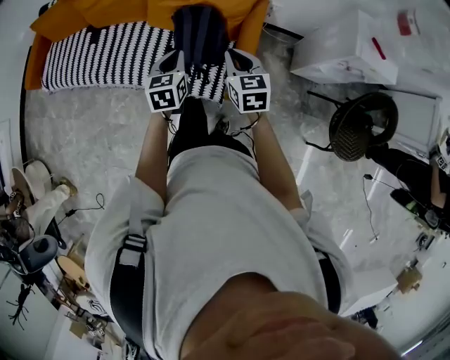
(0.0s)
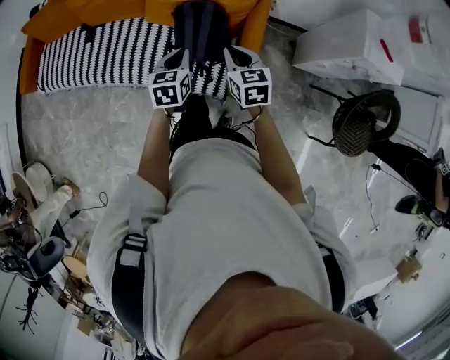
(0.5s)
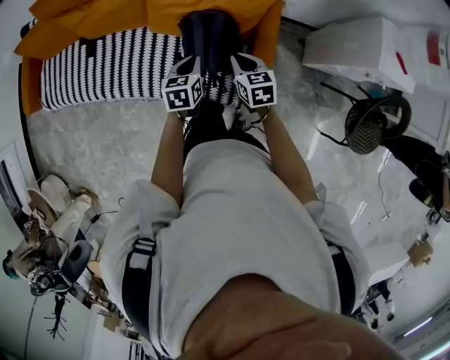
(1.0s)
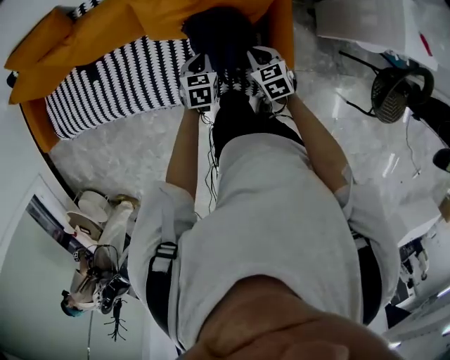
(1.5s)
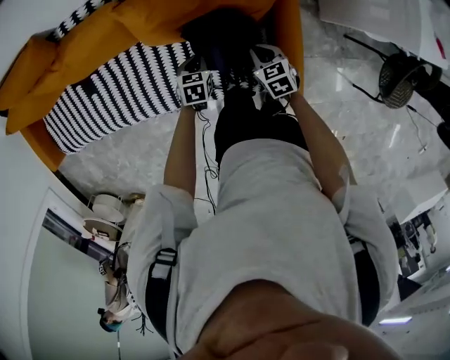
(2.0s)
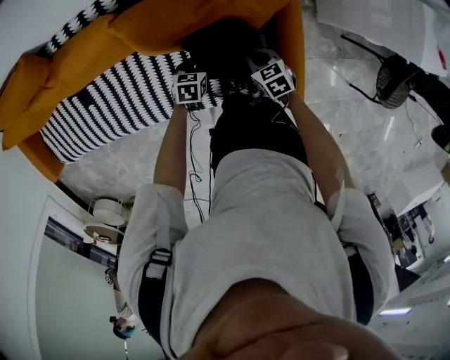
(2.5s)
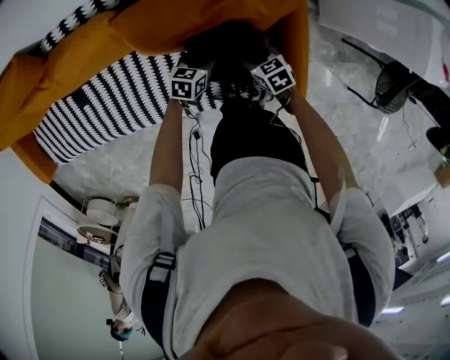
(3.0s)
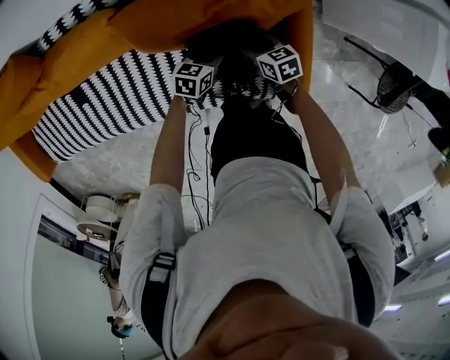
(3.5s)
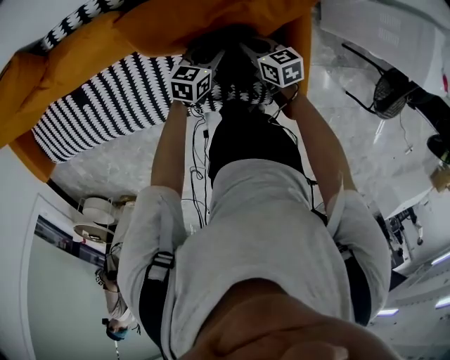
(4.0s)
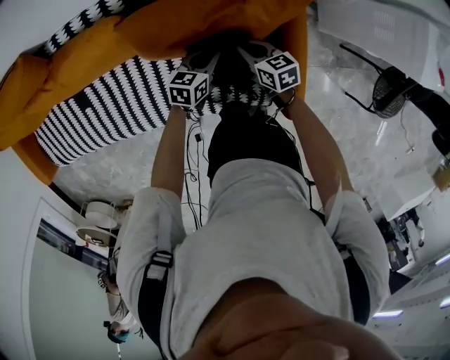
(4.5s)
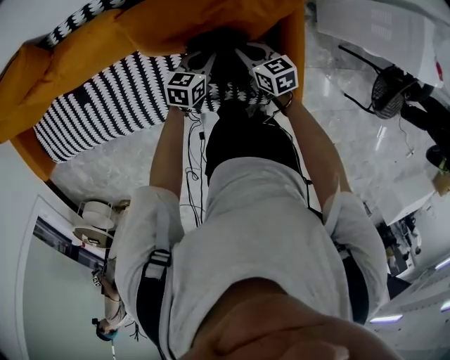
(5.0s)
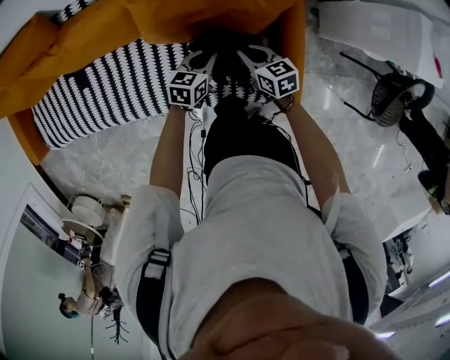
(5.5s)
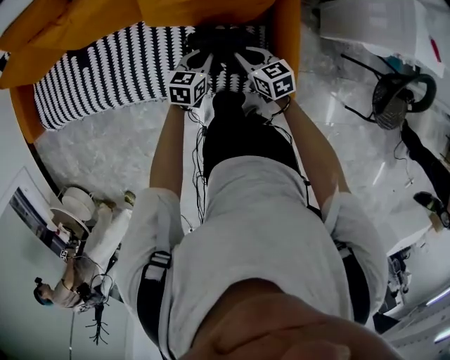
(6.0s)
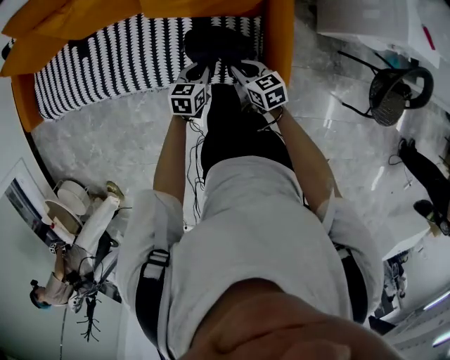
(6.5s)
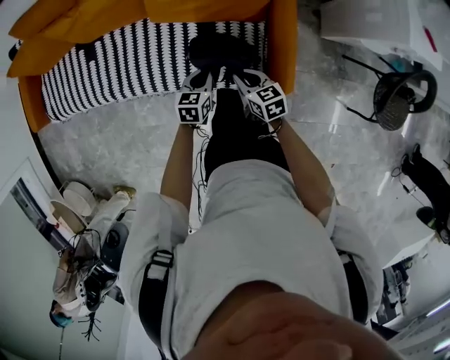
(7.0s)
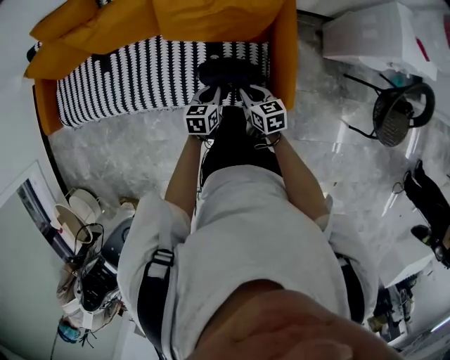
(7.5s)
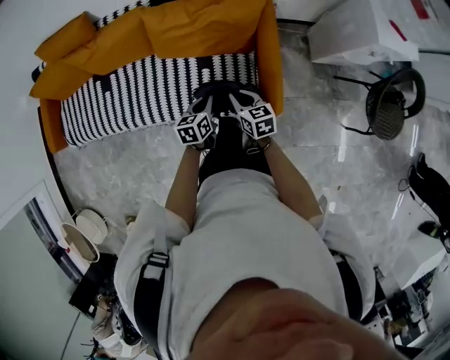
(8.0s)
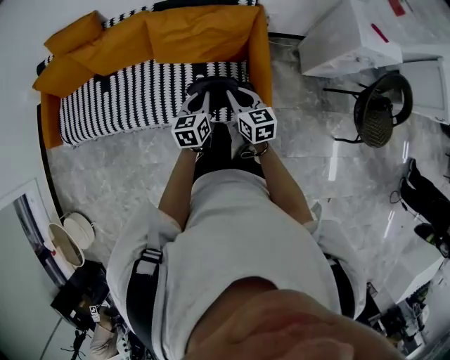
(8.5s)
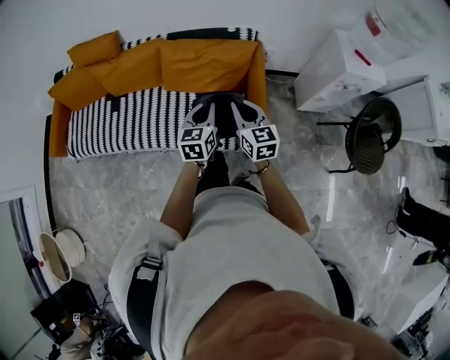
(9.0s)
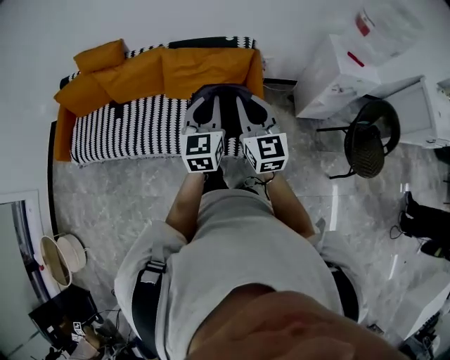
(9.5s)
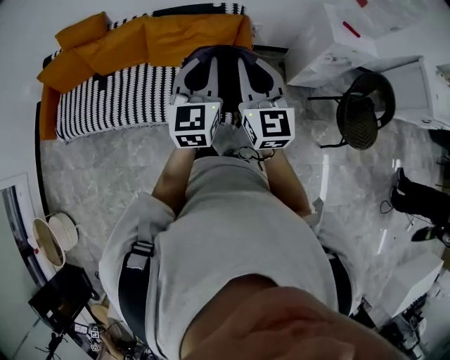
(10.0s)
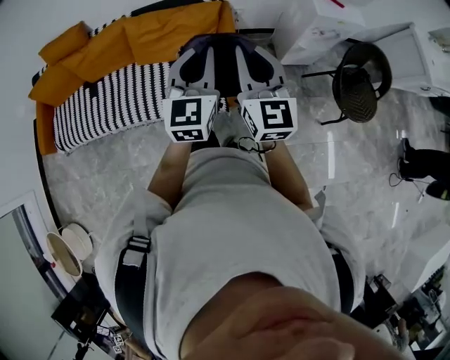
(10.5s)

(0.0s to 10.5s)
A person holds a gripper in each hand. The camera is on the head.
0.0s - 2.0s: The grippers both shift downward and forward by roughly 40 cm. The left gripper swivels approximately 30 degrees. Meanwhile the right gripper turns by some 30 degrees.
2.0s - 4.0s: The right gripper goes about 10 cm forward, rotates approximately 20 degrees, and opens, then closes again. The left gripper travels forward and to the right by approximately 10 cm, turns by about 30 degrees, and opens.
4.0s - 6.5s: The two grippers go some 30 cm backward. The left gripper closes its fingers.
6.5s - 8.5s: Both grippers move upward, some 20 cm. The right gripper rotates some 20 degrees.
8.5s - 10.5s: Both grippers travel together upward and to the right, about 30 cm. The left gripper turns by some 40 degrees, while the right gripper swivels approximately 40 degrees.

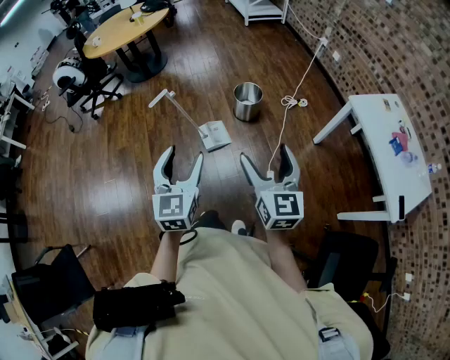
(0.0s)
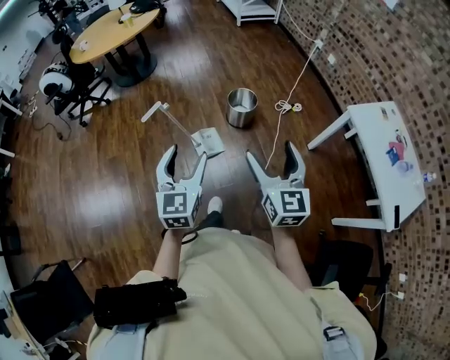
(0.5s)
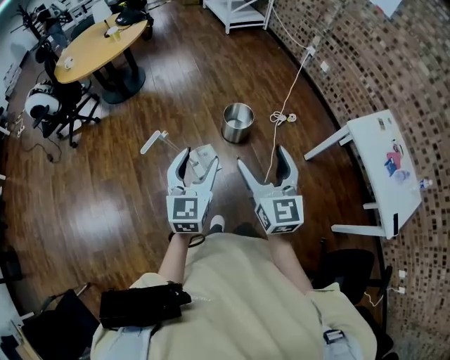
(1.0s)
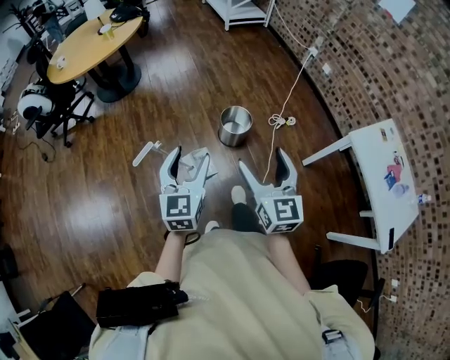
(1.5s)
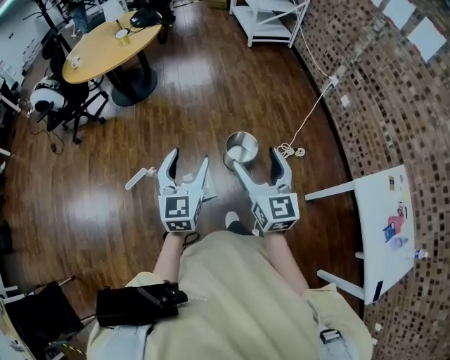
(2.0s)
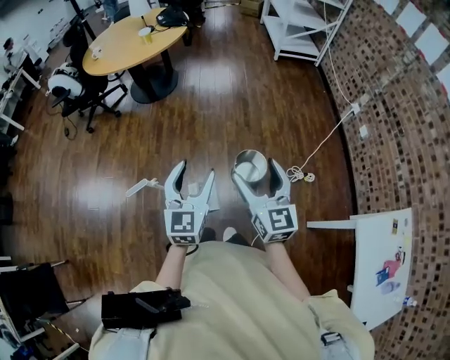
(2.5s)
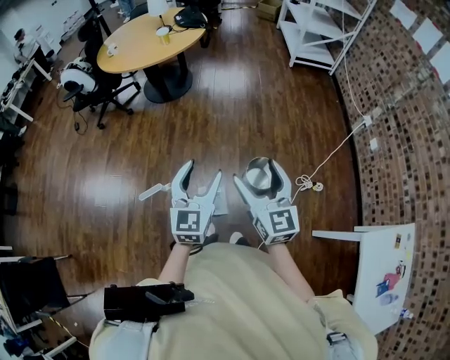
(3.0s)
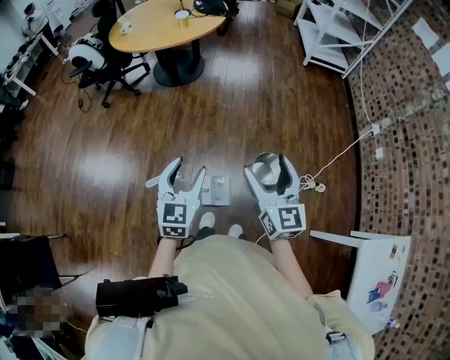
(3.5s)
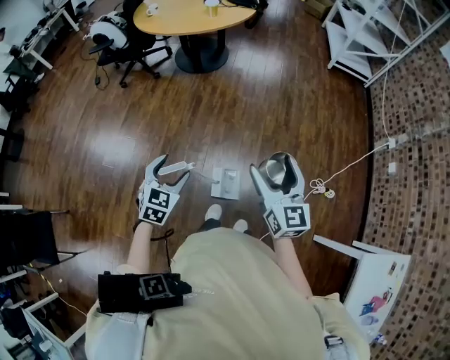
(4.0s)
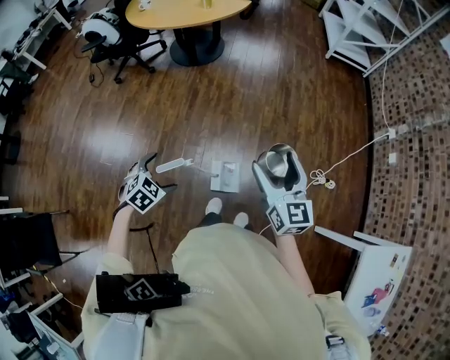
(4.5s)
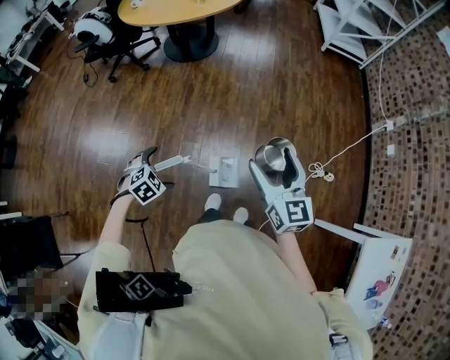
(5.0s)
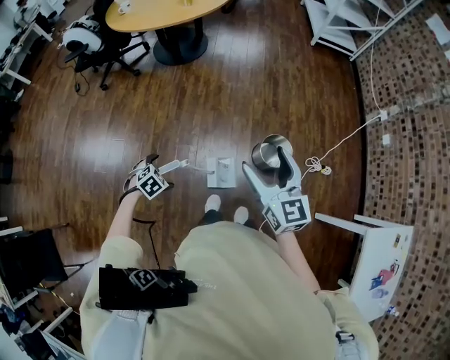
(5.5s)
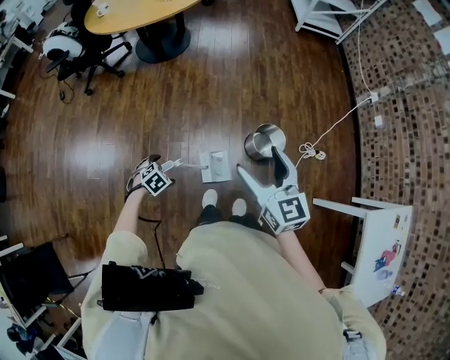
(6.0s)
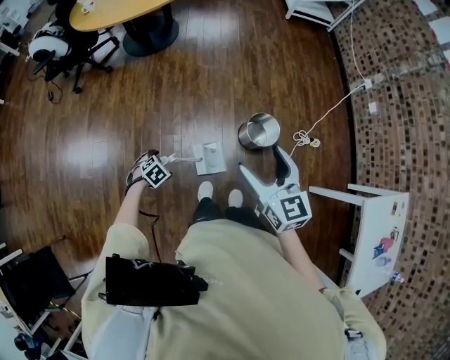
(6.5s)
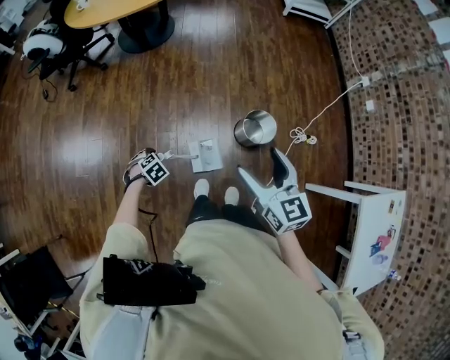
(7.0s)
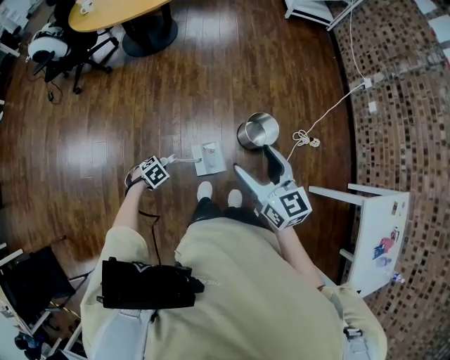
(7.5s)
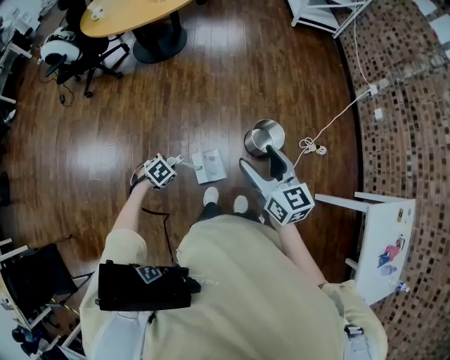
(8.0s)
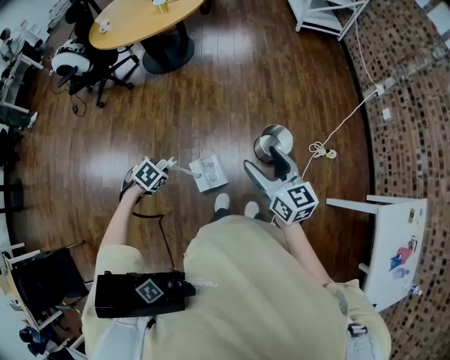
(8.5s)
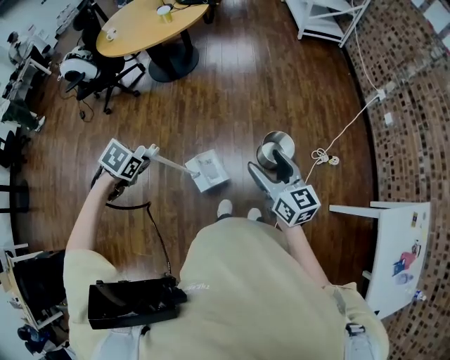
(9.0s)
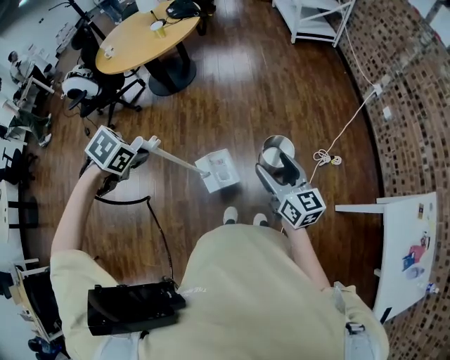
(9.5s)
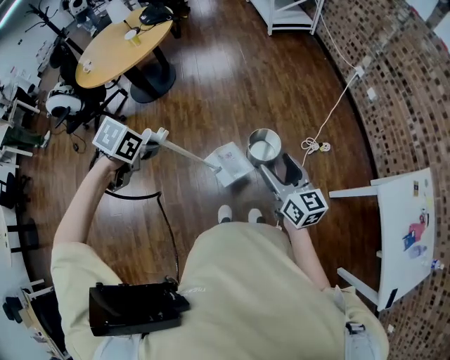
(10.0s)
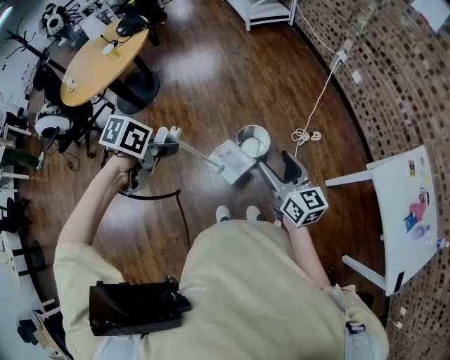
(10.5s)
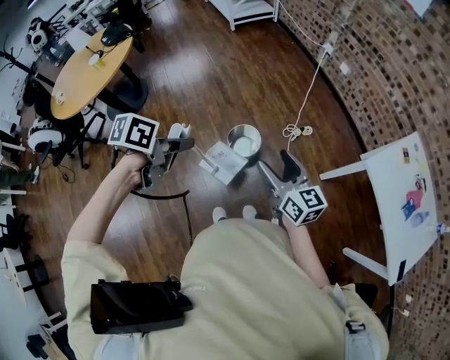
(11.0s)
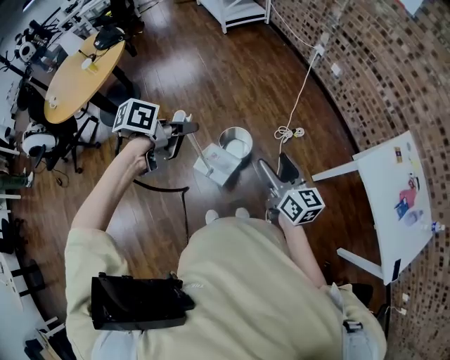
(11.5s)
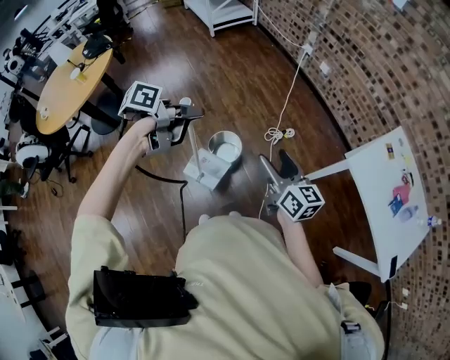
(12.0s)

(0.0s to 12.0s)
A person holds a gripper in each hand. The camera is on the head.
0.0s - 2.0s: Both grippers are carried forward, about 40 cm.
2.0s - 4.0s: The right gripper heads forward and to the left, covering roughly 20 cm, and rotates roughly 20 degrees, while the left gripper goes some 25 cm to the left and downward, and swivels approximately 30 degrees.
4.0s - 6.0s: The left gripper shifts roughly 25 cm downward, and points its fingers some 40 degrees further downward.
6.0s - 8.0s: The left gripper closes up.
8.0s - 10.0s: The right gripper shifts by roughly 15 cm, while the left gripper goes roughly 30 cm upward.
10.0s - 12.0s: The left gripper goes roughly 35 cm forward and to the right, and angles its fingers upward, by about 40 degrees. Meanwhile the right gripper travels to the right and forward by some 15 cm.

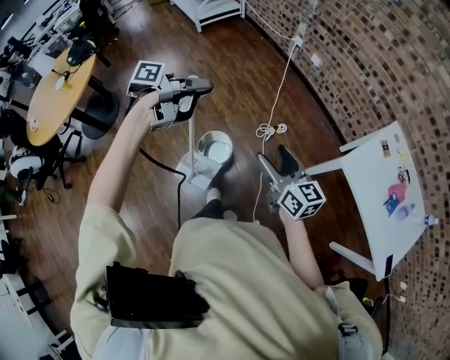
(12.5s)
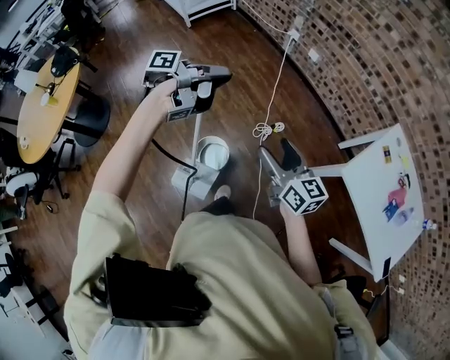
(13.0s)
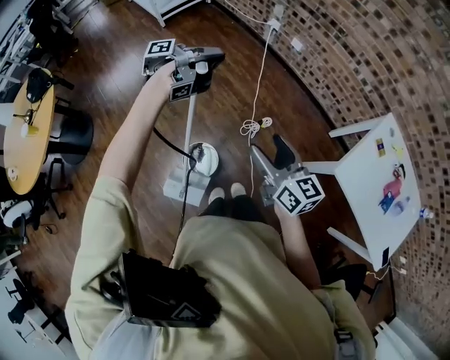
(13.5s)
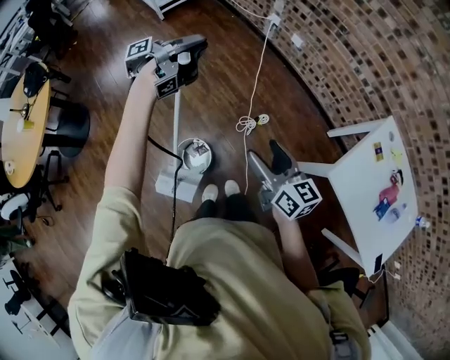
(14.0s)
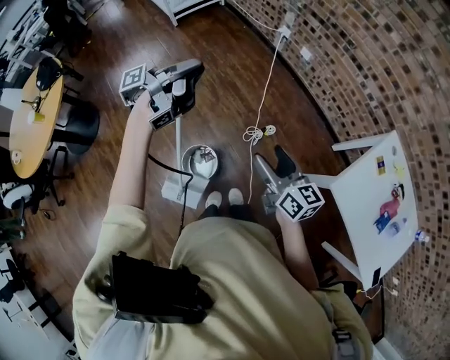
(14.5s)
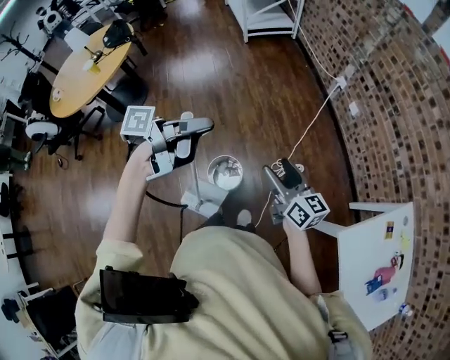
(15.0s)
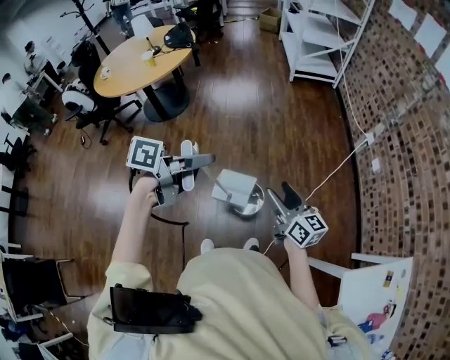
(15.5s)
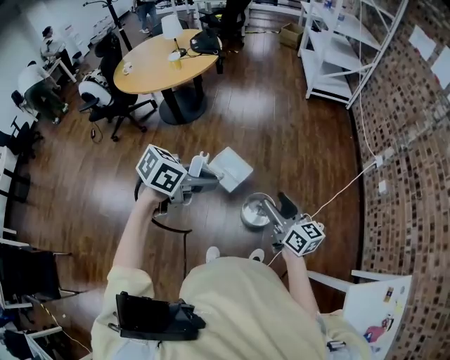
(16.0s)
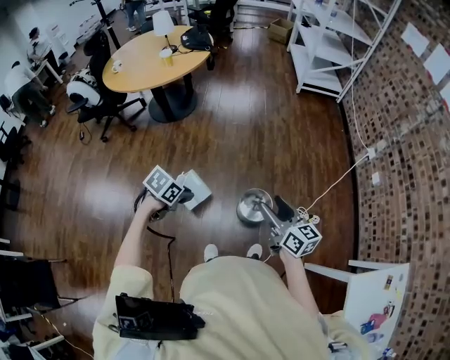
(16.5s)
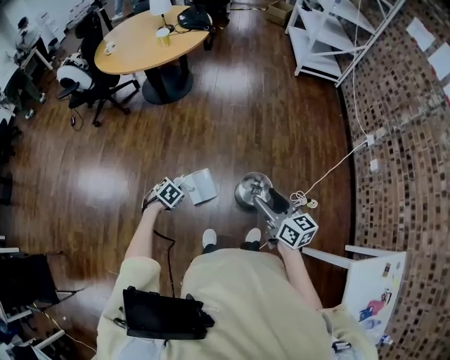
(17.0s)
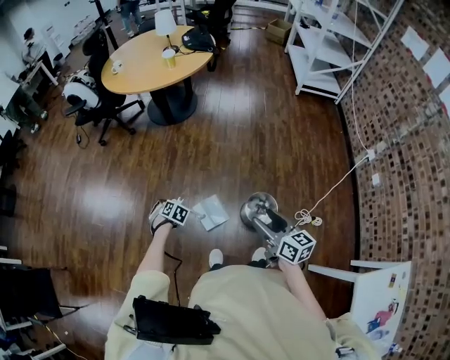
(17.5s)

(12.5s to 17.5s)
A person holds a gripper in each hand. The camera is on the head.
12.5s - 15.0s: The right gripper travels forward and to the left by roughly 20 cm; the left gripper goes forward and returns, roughly 30 cm each way.
15.0s - 17.5s: The left gripper changes place by approximately 70 cm, and tips its fingers downward by some 60 degrees; the right gripper changes place by some 35 cm, and turns by approximately 30 degrees.
